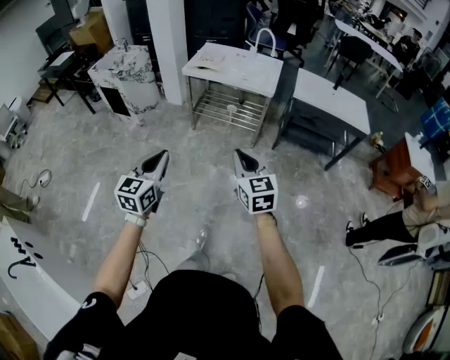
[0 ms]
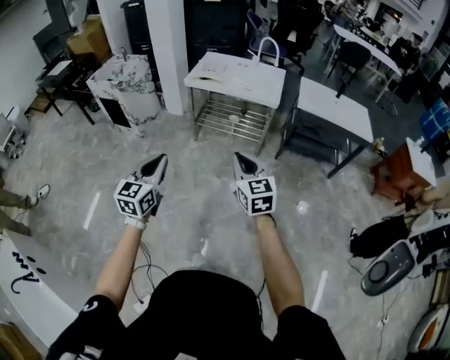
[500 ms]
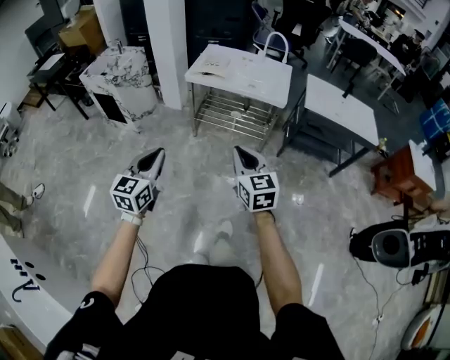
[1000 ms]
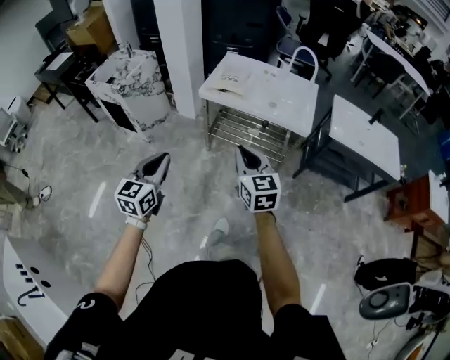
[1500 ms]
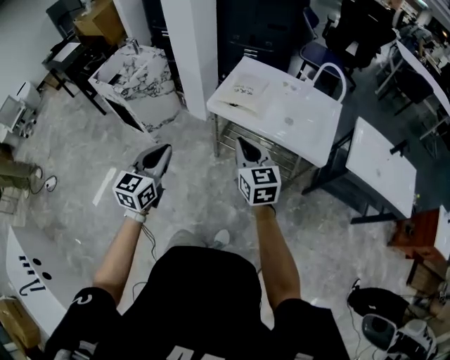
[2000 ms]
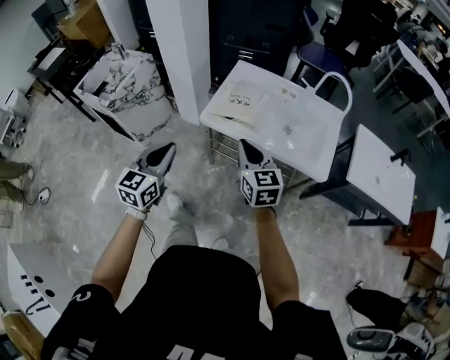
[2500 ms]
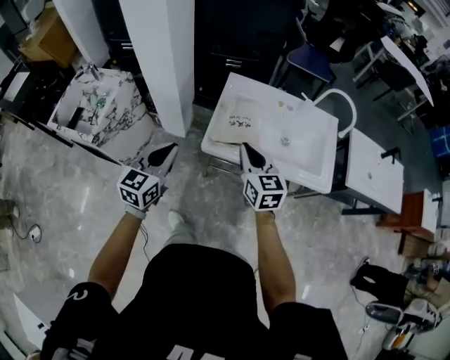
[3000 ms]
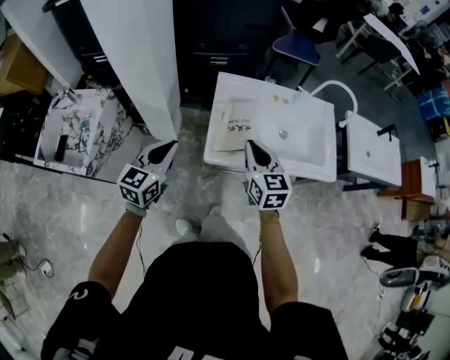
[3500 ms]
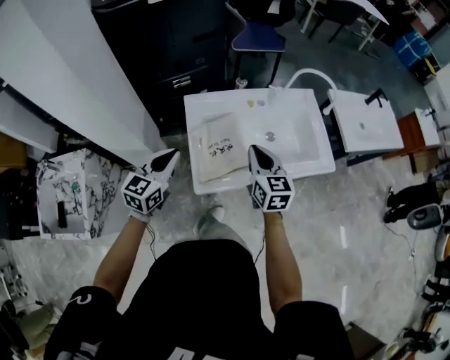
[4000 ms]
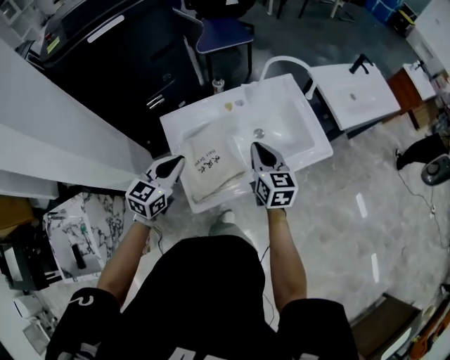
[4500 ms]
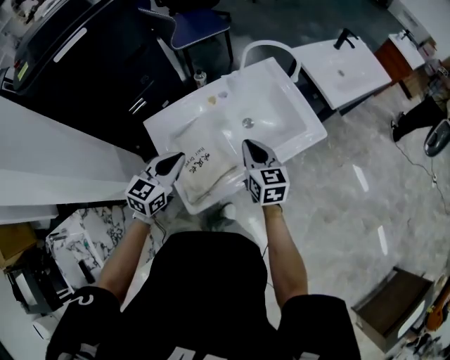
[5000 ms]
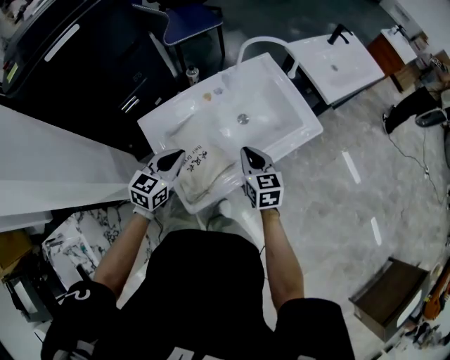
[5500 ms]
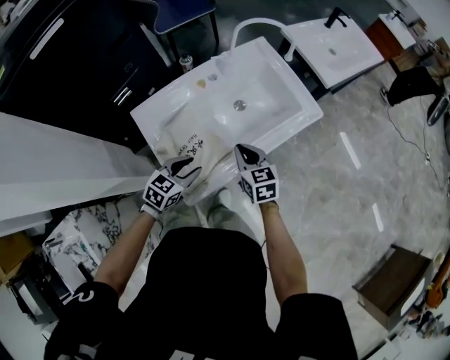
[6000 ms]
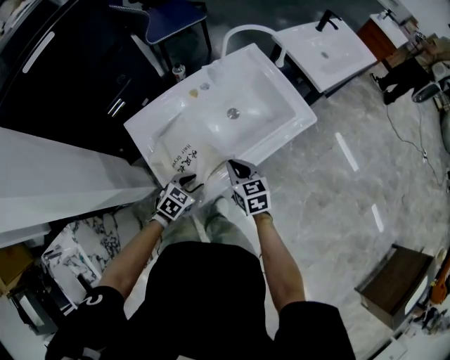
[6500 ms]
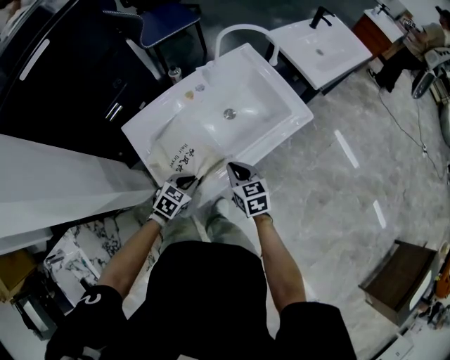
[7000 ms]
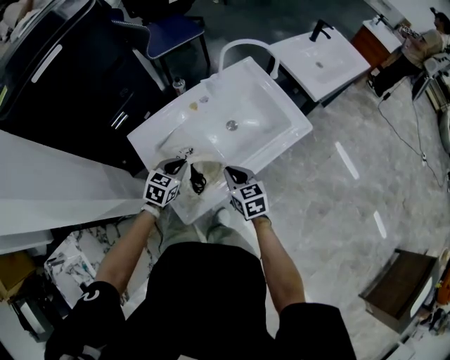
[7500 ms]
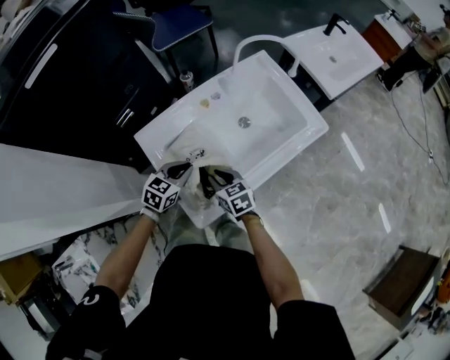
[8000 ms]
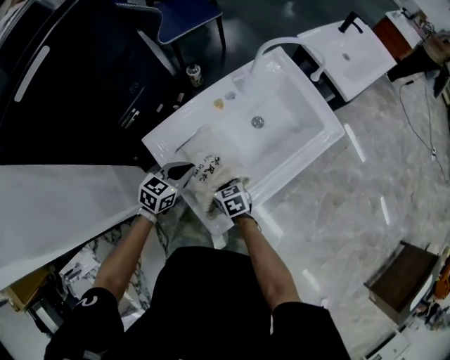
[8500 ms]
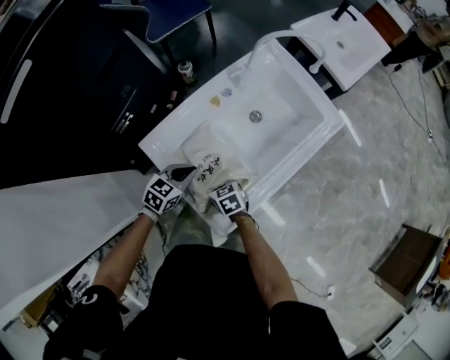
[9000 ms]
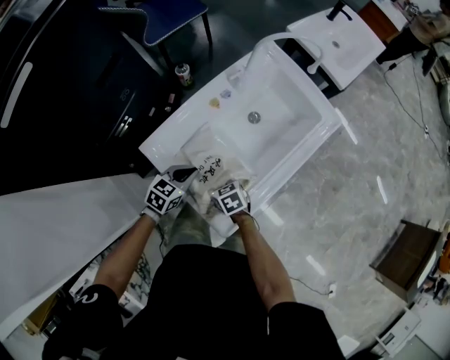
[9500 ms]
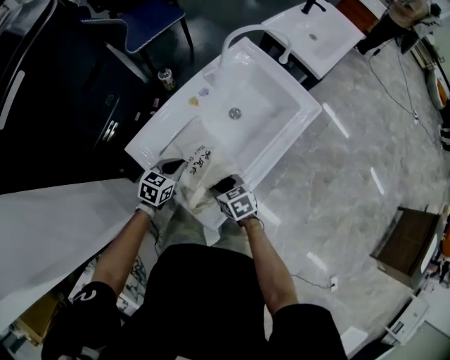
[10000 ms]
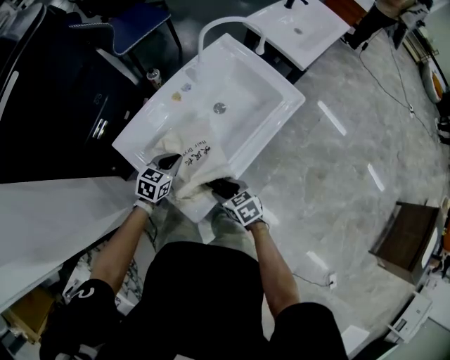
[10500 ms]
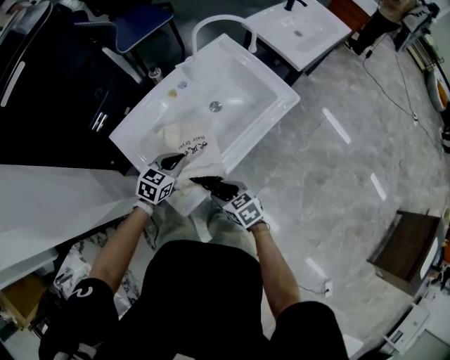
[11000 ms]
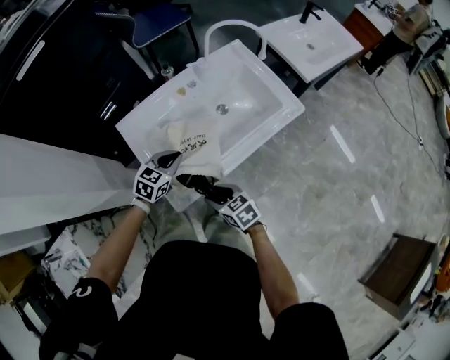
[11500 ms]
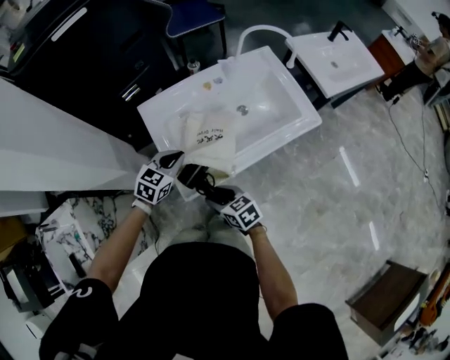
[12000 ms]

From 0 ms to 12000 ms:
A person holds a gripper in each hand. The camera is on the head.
From 0 ms to 2000 ms: The pair of grippers is taken forward, about 60 cm.
From 2000 ms to 4000 ms: The left gripper shifts by some 50 cm, and changes its angle by about 40 degrees, while the right gripper moves roughly 40 cm, and changes its angle by some 40 degrees.
From 4000 ms to 6000 ms: Both grippers move downward, some 15 cm. The left gripper changes its angle by about 40 degrees, and opens its fingers.
From 6000 ms to 8000 ms: The left gripper heads forward and to the left, covering approximately 10 cm, and closes its fingers. Meanwhile the right gripper is displaced to the left and downward by approximately 15 cm.
From 8000 ms to 10000 ms: The right gripper opens up; the left gripper moves downward, some 5 cm.
From 10000 ms to 12000 ms: The right gripper ends up some 15 cm from where it was, and turns by roughly 30 degrees. The left gripper shifts by roughly 15 cm, and swivels roughly 20 degrees.

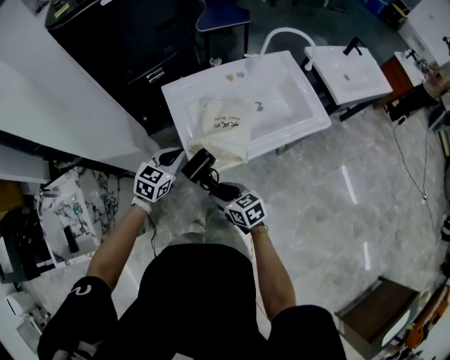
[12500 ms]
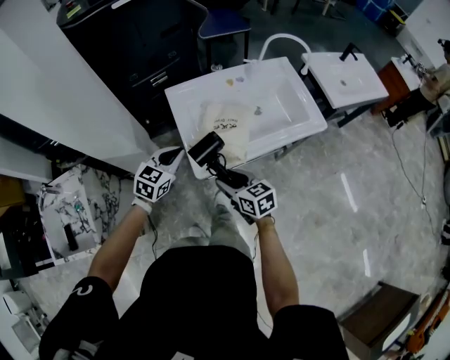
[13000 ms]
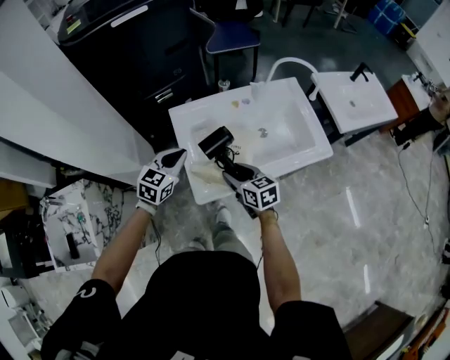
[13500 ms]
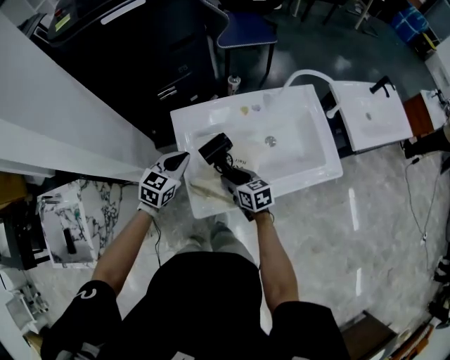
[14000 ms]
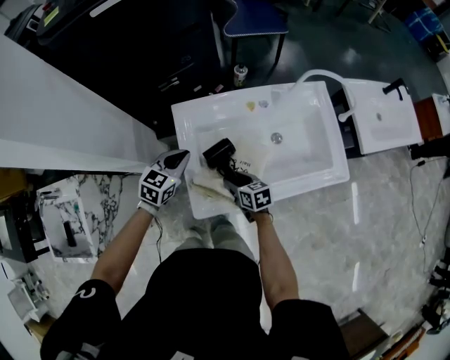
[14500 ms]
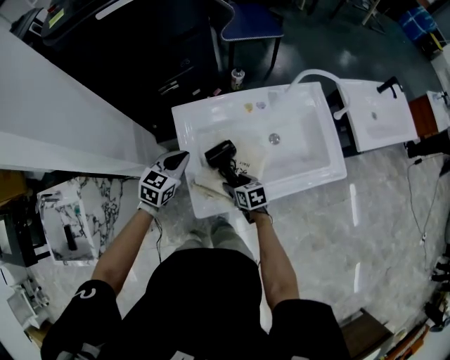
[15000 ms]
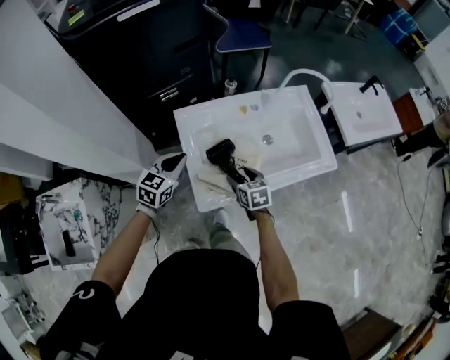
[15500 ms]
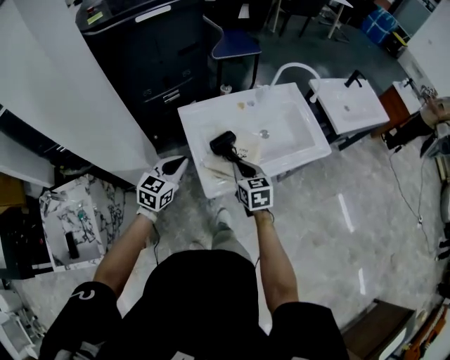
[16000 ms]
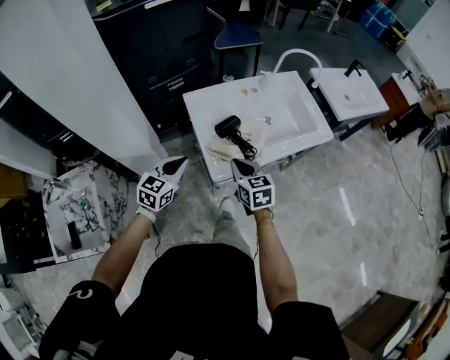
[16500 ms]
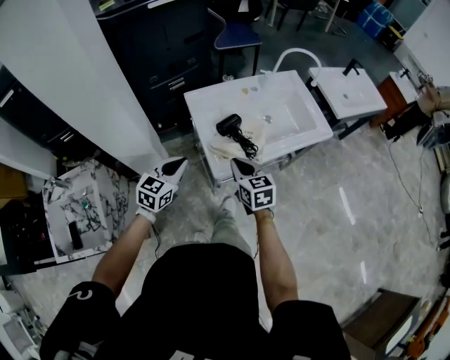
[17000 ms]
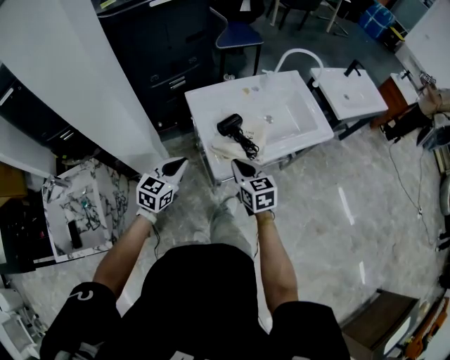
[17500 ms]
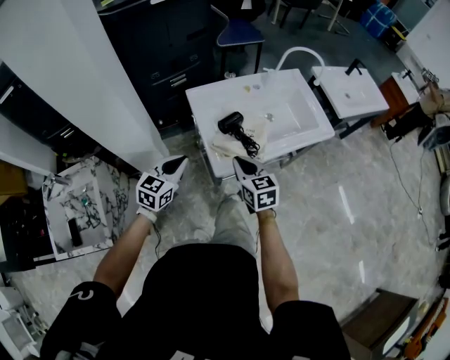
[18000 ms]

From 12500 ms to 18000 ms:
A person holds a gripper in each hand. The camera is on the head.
From 12500 ms to 14500 ms: Both grippers travel together forward, about 20 cm.
From 14500 ms to 16000 ms: The right gripper is displaced upward and backward by approximately 20 cm, rotates about 30 degrees, and closes its fingers. The left gripper travels backward and upward by approximately 15 cm.
From 16000 ms to 18000 ms: Both grippers move backward, approximately 10 cm.

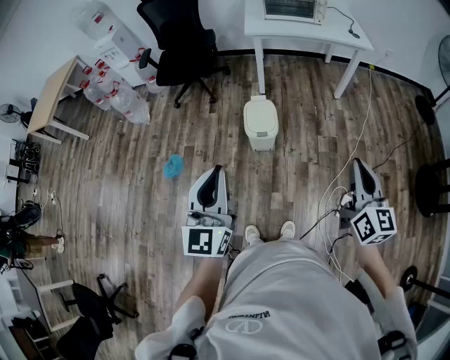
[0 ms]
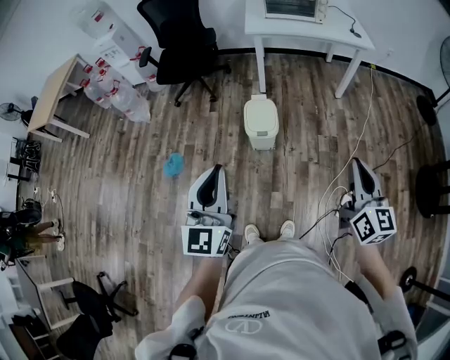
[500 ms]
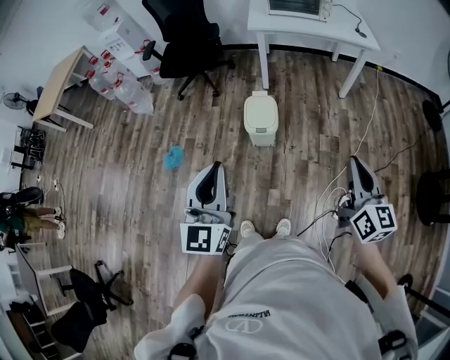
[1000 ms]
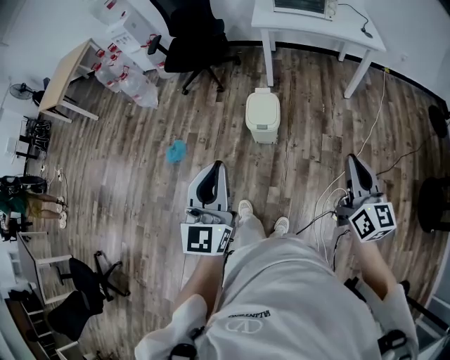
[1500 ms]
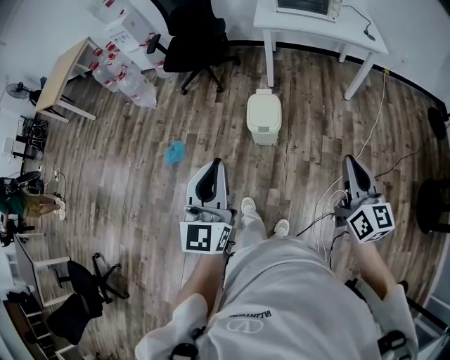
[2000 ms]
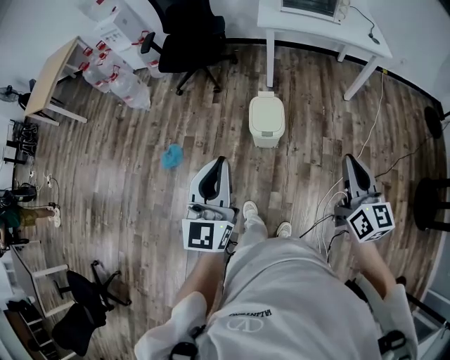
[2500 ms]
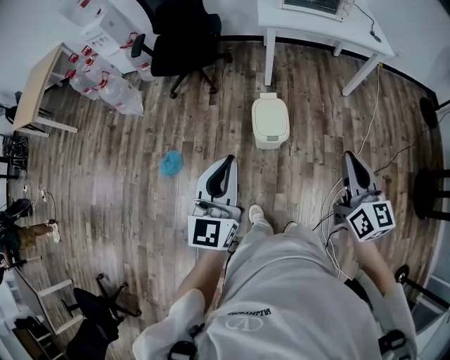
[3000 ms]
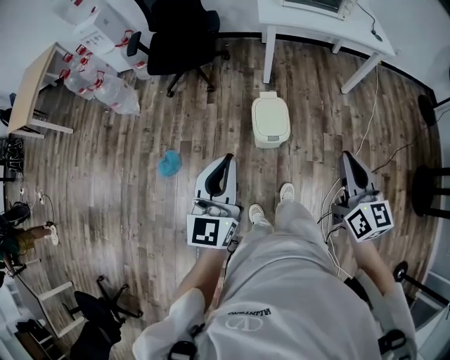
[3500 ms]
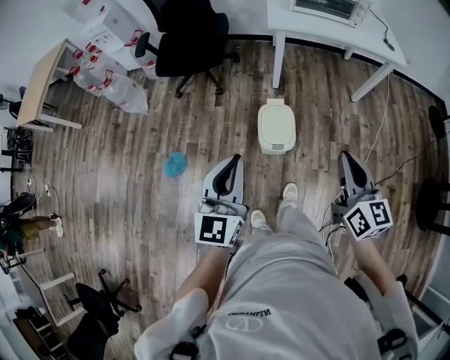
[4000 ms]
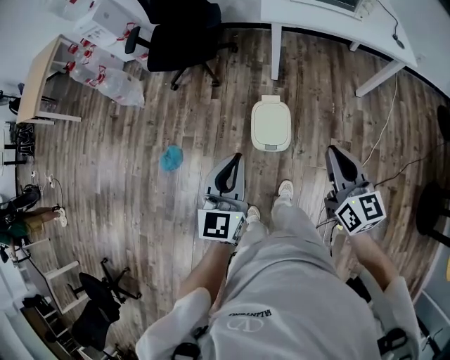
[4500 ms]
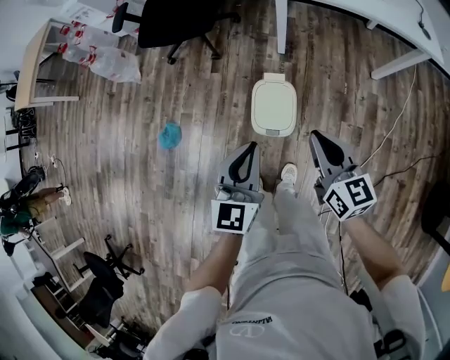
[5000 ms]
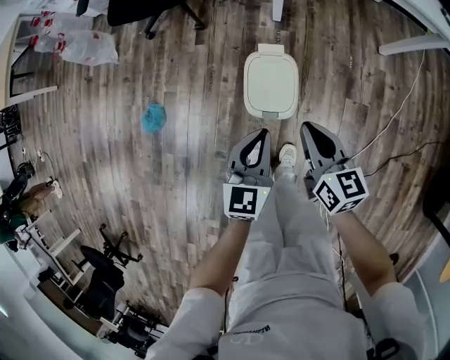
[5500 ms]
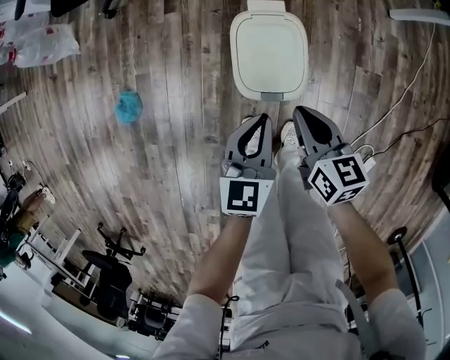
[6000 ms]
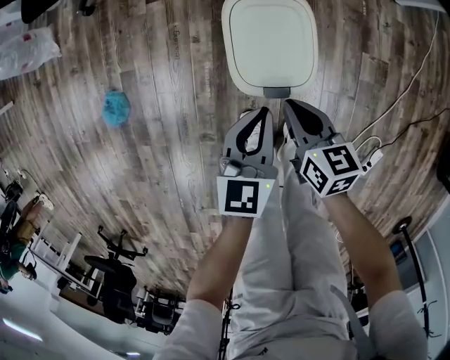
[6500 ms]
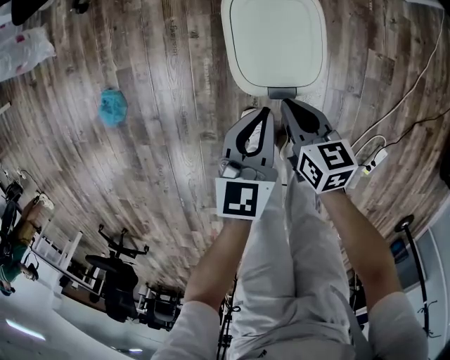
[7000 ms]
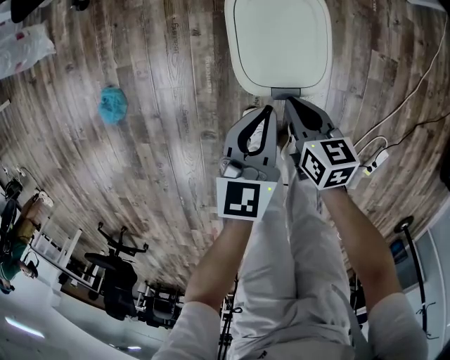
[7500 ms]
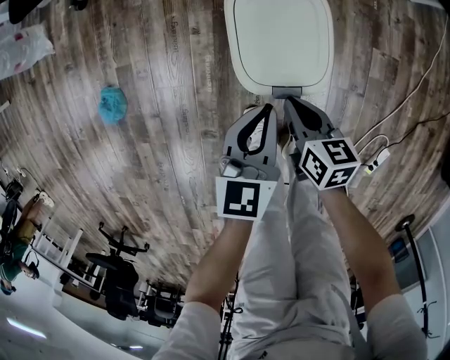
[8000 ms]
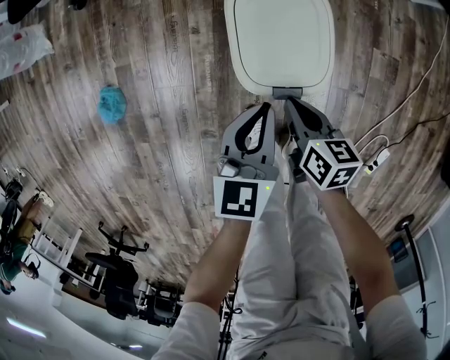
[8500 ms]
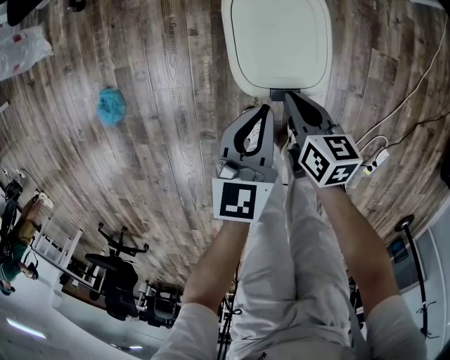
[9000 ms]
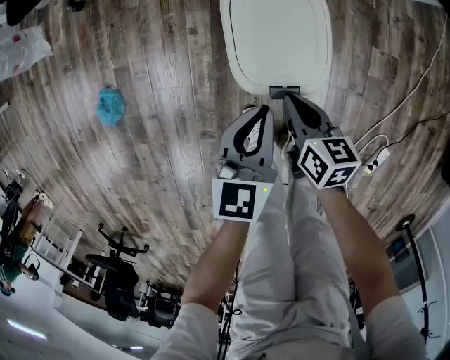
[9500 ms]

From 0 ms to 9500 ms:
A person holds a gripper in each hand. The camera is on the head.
From 2000 ms to 4000 ms: Both grippers travel together forward and to the left, roughly 25 cm.
From 4000 ms to 5500 ms: The right gripper heads downward and forward, covering approximately 35 cm, and rotates some 20 degrees, while the left gripper is displaced downward, to the right and forward by roughly 40 cm, and changes its angle by about 20 degrees.
From 5500 ms to 7500 ms: The two grippers go some 35 cm downward. The right gripper changes its angle by some 20 degrees.
From 7500 ms to 9500 ms: The grippers make only small movements.
